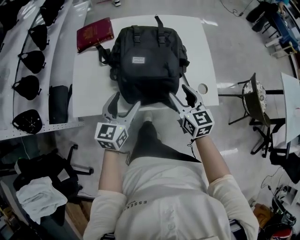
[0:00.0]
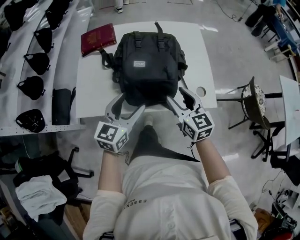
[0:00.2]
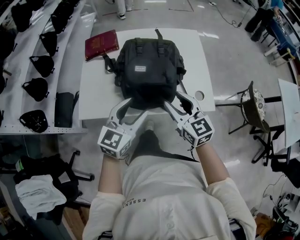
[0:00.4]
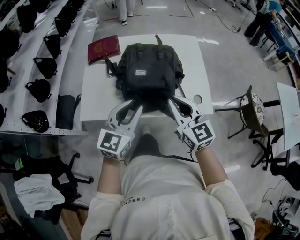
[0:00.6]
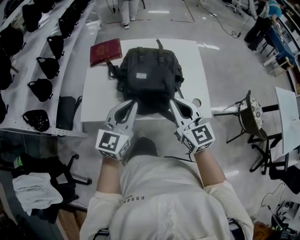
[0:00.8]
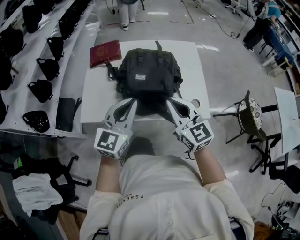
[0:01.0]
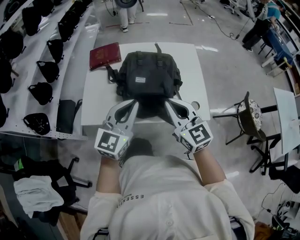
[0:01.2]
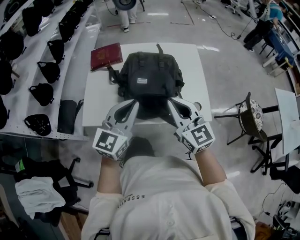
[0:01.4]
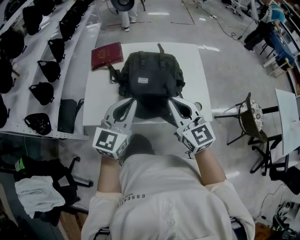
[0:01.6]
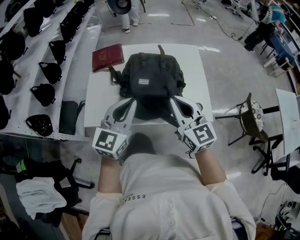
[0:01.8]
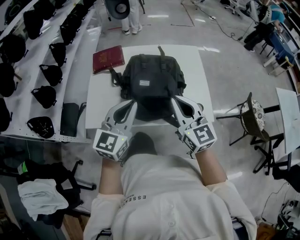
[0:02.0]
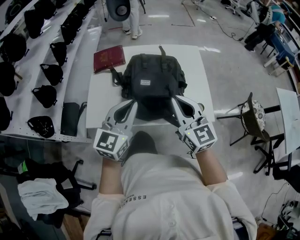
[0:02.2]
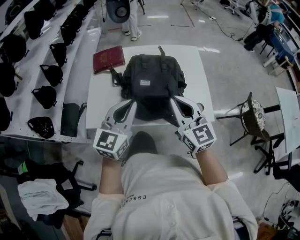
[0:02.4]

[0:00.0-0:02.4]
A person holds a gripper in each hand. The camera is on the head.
0:00.0 to 0:01.2: Both grippers travel together upward, some 15 cm. The left gripper changes its angle by about 20 degrees, and closes its fingers, while the right gripper swivels about 20 degrees, and closes up.
0:01.2 to 0:02.4: The grippers move only a little.

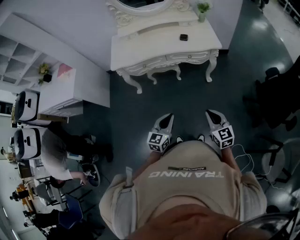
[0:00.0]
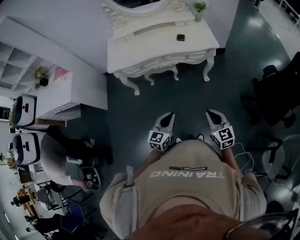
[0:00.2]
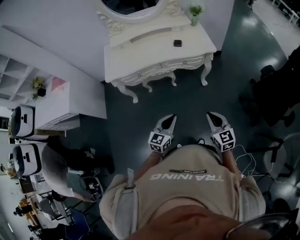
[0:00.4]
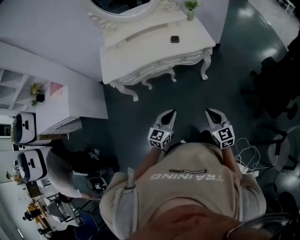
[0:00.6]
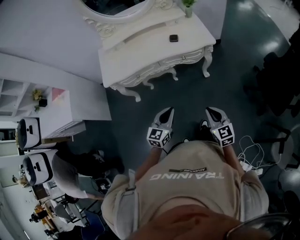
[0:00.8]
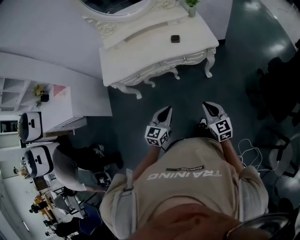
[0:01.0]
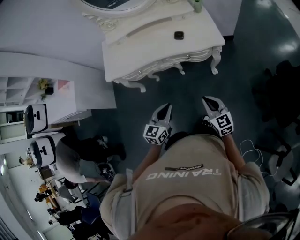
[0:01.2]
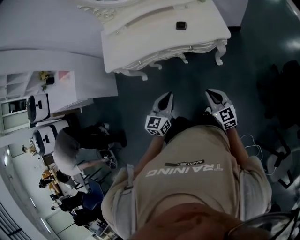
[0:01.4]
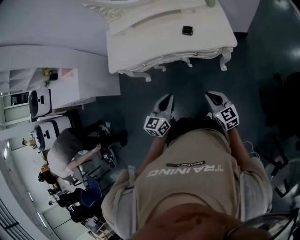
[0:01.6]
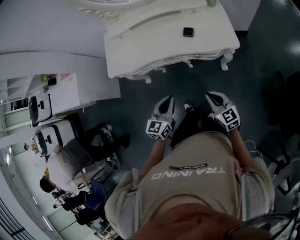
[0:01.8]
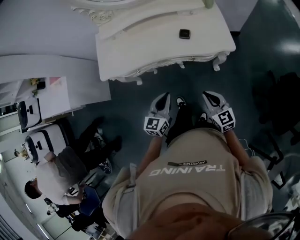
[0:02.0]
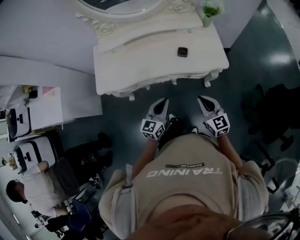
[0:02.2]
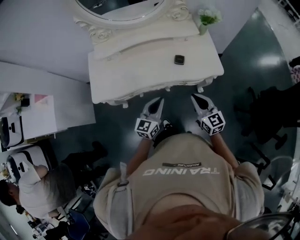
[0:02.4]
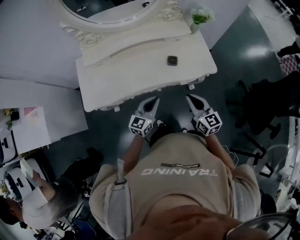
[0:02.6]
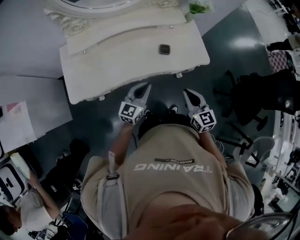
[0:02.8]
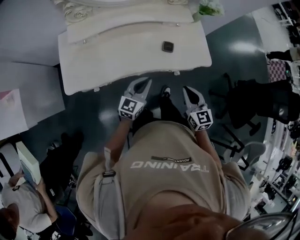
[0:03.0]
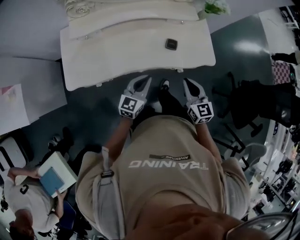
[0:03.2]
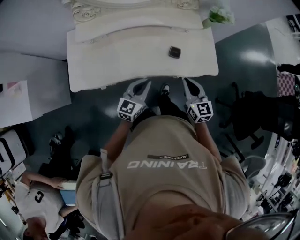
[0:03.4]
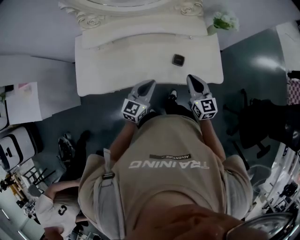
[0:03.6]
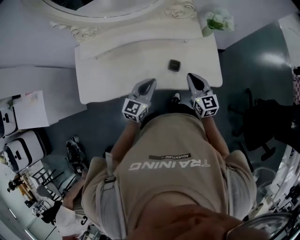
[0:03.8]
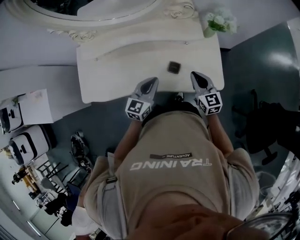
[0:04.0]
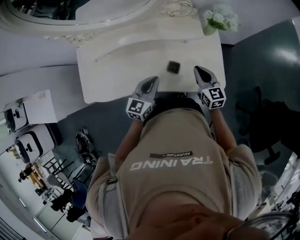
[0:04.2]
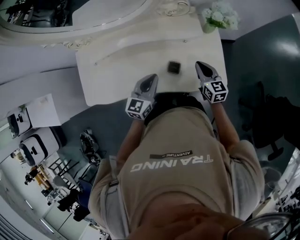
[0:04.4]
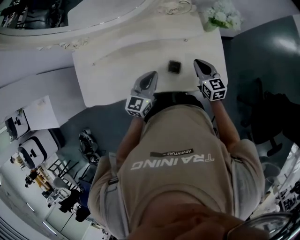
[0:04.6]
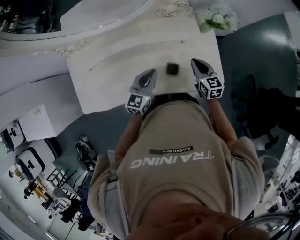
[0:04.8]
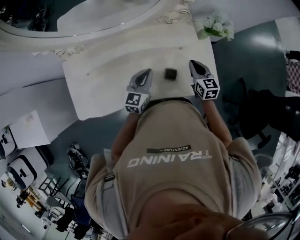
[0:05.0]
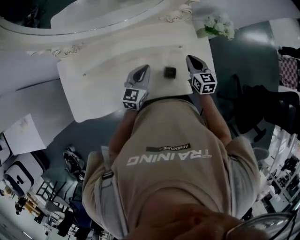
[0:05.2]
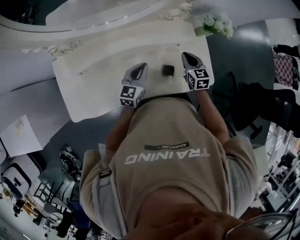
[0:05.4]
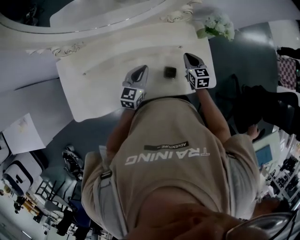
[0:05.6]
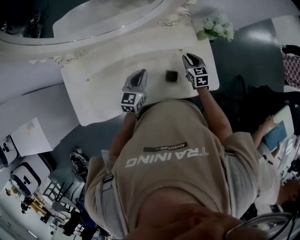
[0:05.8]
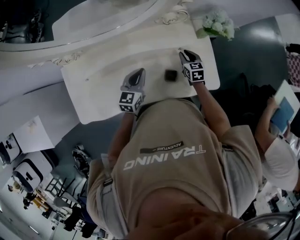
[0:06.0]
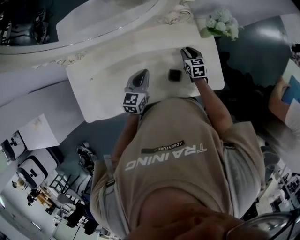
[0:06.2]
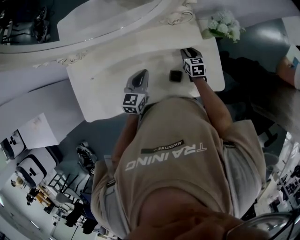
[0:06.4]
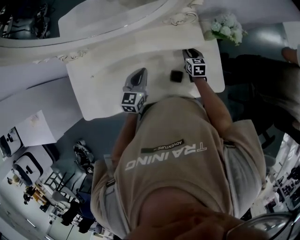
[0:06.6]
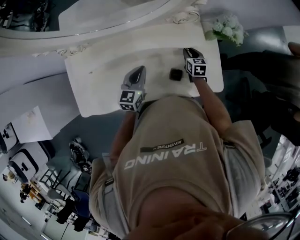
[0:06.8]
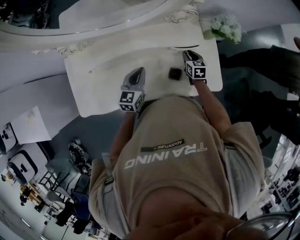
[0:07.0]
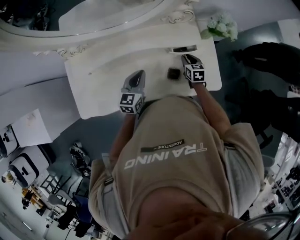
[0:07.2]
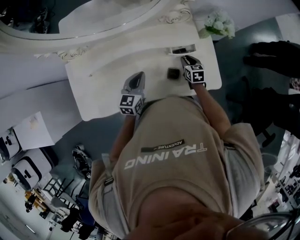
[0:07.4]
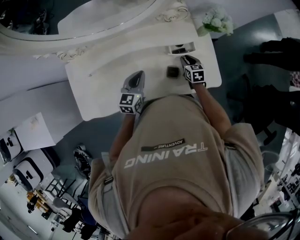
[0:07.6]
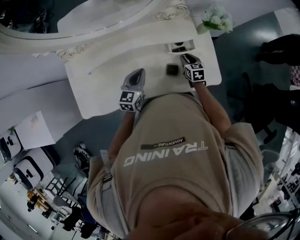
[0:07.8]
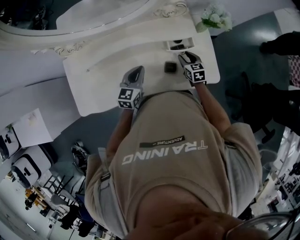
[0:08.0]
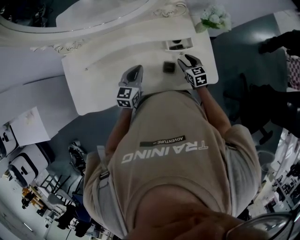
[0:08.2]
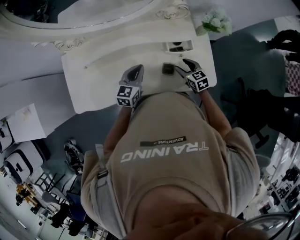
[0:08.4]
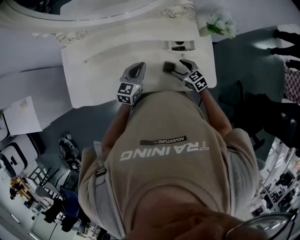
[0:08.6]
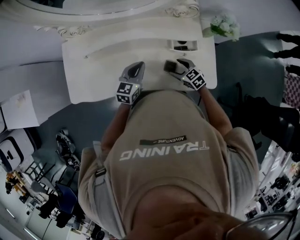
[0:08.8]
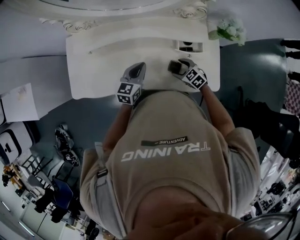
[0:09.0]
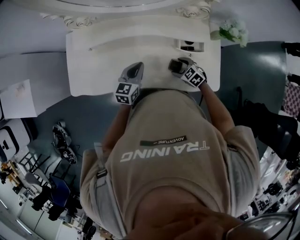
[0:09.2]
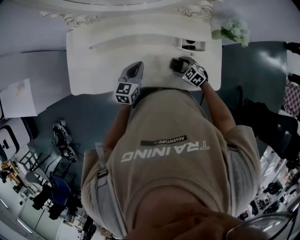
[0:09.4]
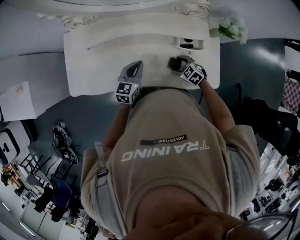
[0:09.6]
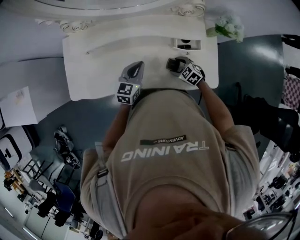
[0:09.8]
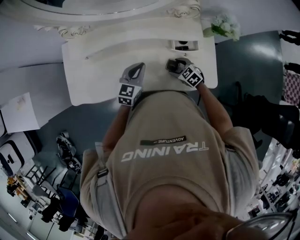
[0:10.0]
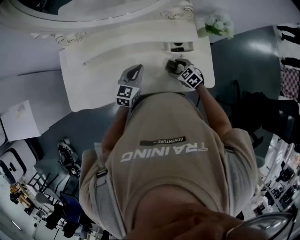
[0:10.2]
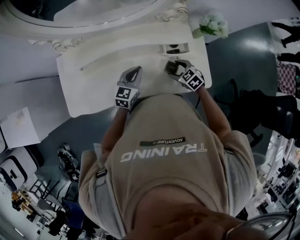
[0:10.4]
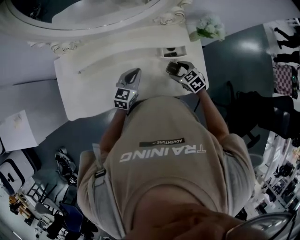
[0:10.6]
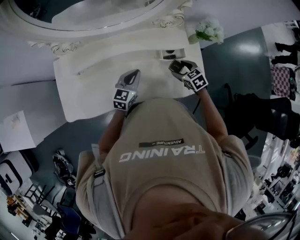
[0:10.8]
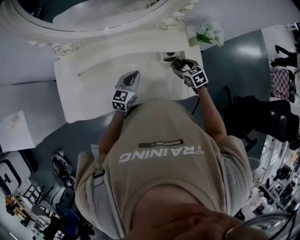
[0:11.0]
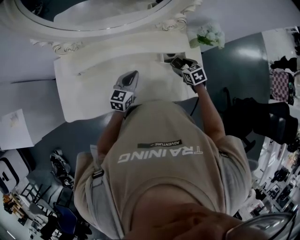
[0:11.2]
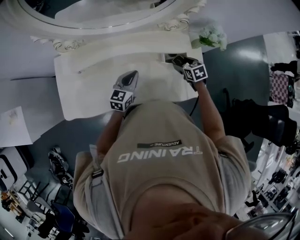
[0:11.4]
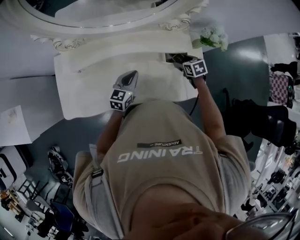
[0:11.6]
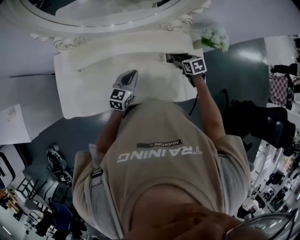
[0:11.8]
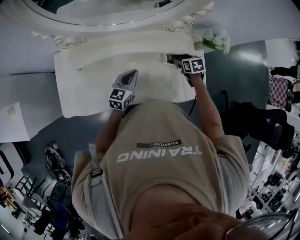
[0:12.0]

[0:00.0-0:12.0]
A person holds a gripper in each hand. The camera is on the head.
0:00.0 to 0:01.6: Both grippers travel together forward, roughly 30 cm.
0:01.6 to 0:03.0: The right gripper shifts approximately 25 cm forward and to the left, and changes its angle by about 30 degrees, while the left gripper goes roughly 25 cm forward, and turns by some 20 degrees.
0:03.0 to 0:04.4: The left gripper heads forward and to the right, covering approximately 20 cm. Meanwhile the right gripper travels forward and to the right by roughly 30 cm.
0:04.4 to 0:06.0: The left gripper shifts approximately 10 cm forward and to the left, while the right gripper travels forward, downward and to the left by some 15 cm, and swivels some 20 degrees.
0:06.0 to 0:07.6: The right gripper moves approximately 5 cm.
0:07.6 to 0:09.0: The right gripper shifts by roughly 10 cm, rotates approximately 50 degrees, and opens.
0:09.0 to 0:10.4: The right gripper changes place by about 5 cm.
0:10.4 to 0:12.0: The right gripper shifts about 15 cm forward and to the right, and changes its angle by approximately 30 degrees.

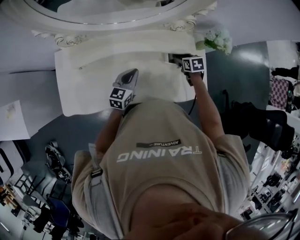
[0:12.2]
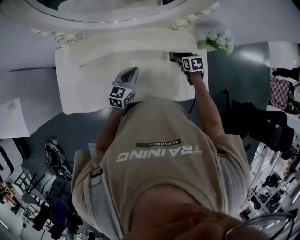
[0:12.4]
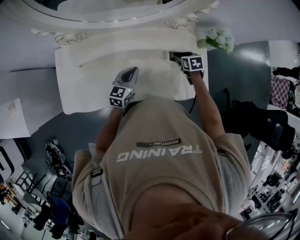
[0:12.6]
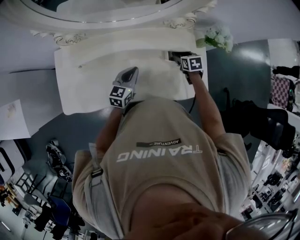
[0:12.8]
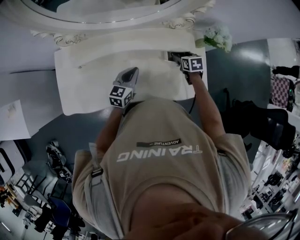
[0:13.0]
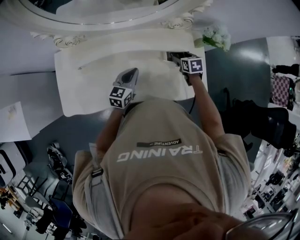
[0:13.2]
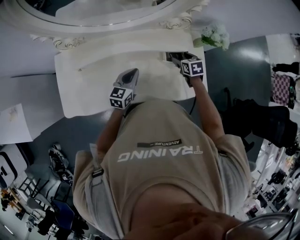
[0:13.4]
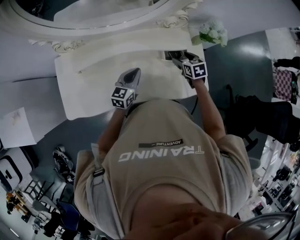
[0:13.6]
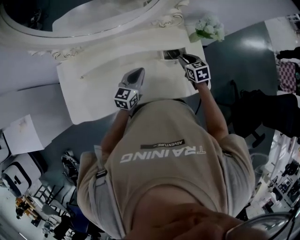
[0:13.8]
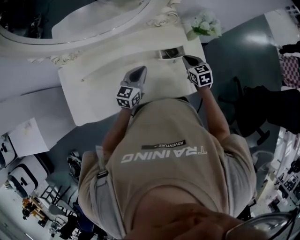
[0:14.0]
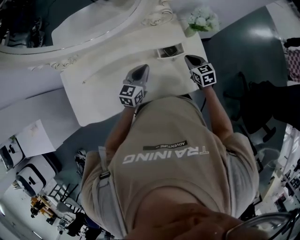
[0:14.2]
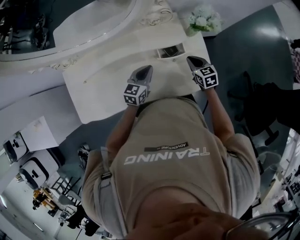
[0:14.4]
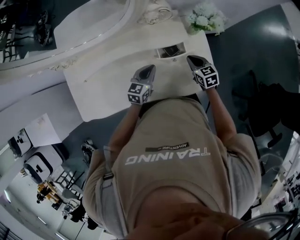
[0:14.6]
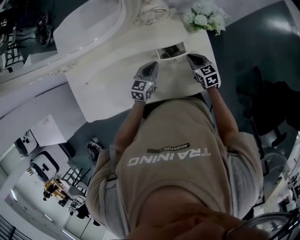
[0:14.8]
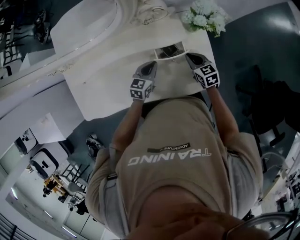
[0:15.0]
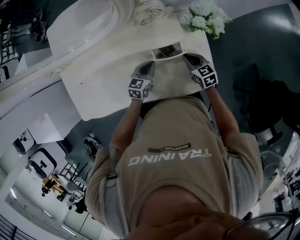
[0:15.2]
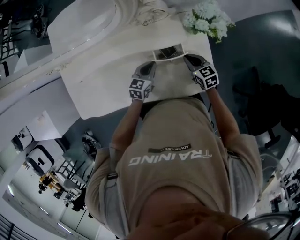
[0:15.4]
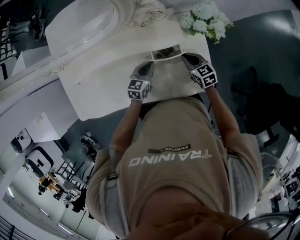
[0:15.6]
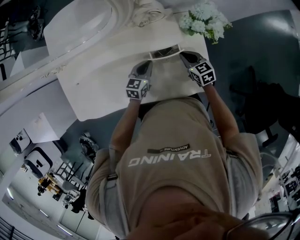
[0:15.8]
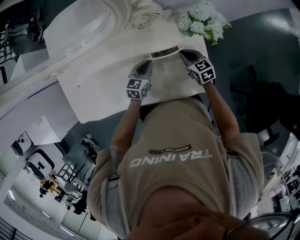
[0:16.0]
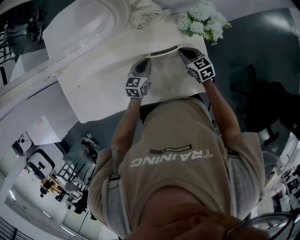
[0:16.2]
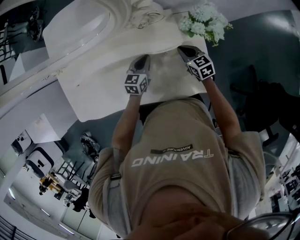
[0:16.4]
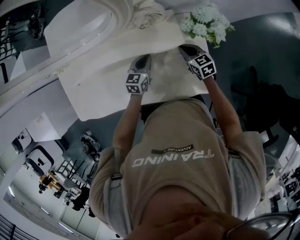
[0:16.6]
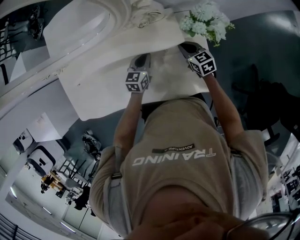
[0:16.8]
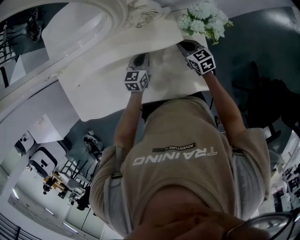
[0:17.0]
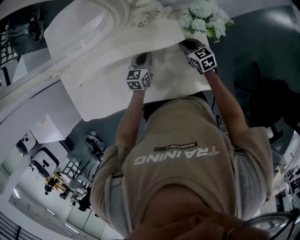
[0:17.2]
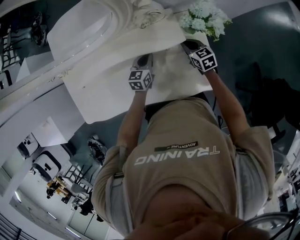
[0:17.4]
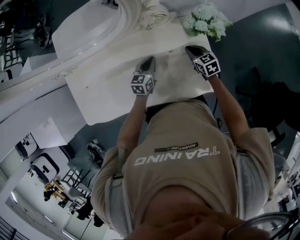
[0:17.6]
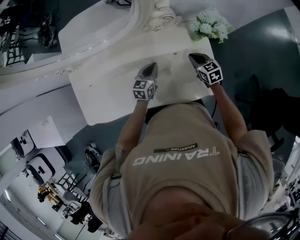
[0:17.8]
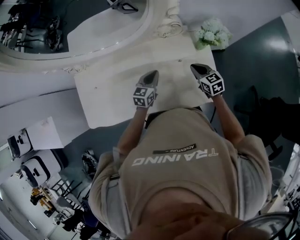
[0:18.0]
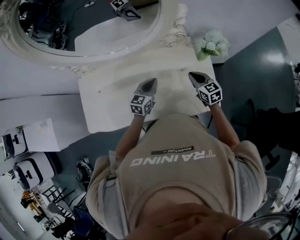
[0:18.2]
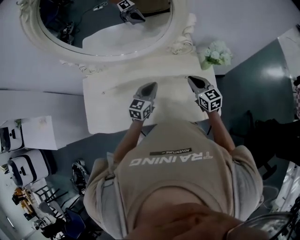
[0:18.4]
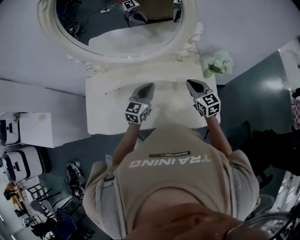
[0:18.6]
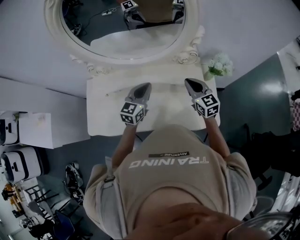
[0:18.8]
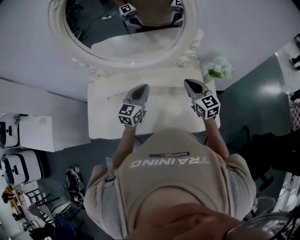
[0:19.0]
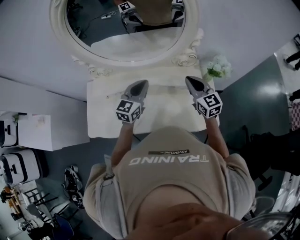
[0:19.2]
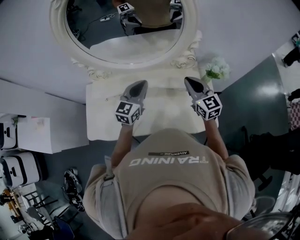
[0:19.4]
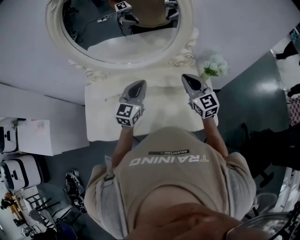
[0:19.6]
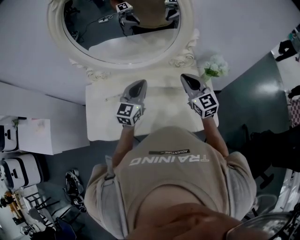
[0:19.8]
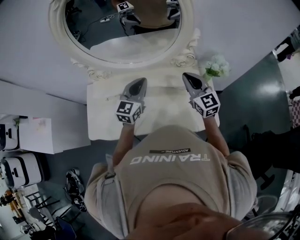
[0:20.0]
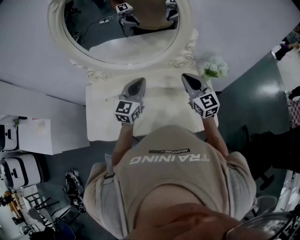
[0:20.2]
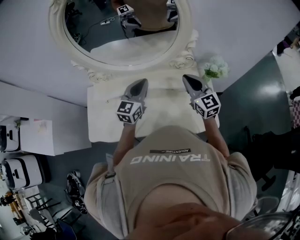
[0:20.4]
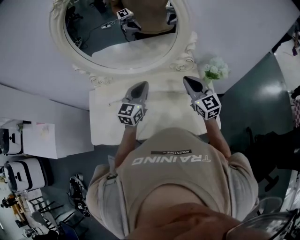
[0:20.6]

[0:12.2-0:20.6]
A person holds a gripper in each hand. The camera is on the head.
0:12.2 to 0:13.6: The right gripper changes place by approximately 5 cm.
0:13.6 to 0:15.0: The right gripper shifts roughly 10 cm to the right and downward, and closes. The left gripper heads to the right, downward and forward, covering roughly 20 cm.
0:15.0 to 0:16.4: The grippers both shift forward by approximately 5 cm.
0:16.4 to 0:17.8: The left gripper ends up roughly 5 cm from where it was.
0:17.8 to 0:19.2: The two grippers go approximately 30 cm upward and to the left. The left gripper changes its angle by some 20 degrees. Meanwhile the right gripper swivels some 30 degrees.
0:19.2 to 0:20.6: The grippers make only small movements.

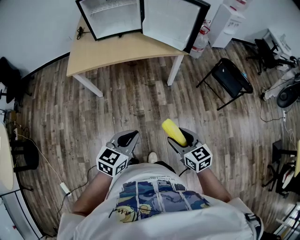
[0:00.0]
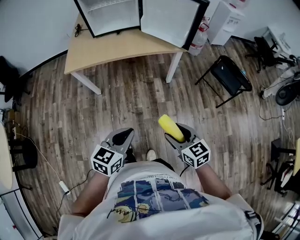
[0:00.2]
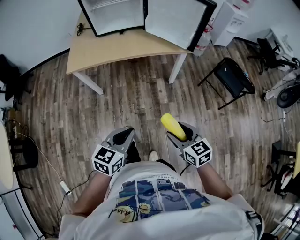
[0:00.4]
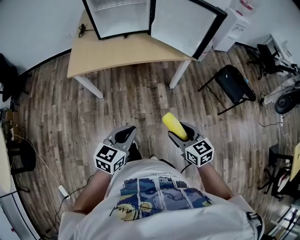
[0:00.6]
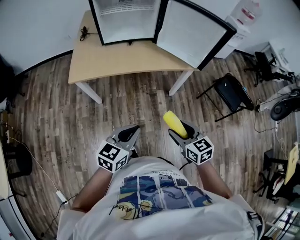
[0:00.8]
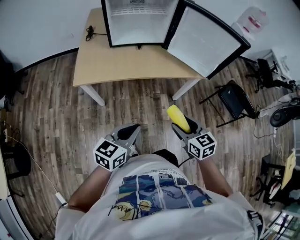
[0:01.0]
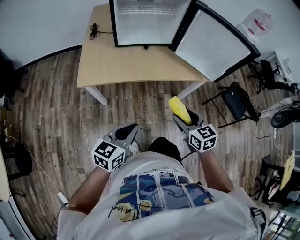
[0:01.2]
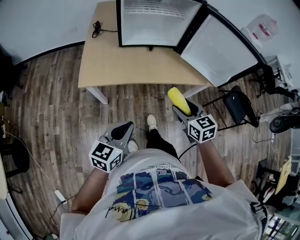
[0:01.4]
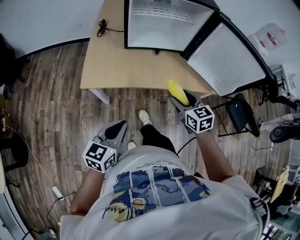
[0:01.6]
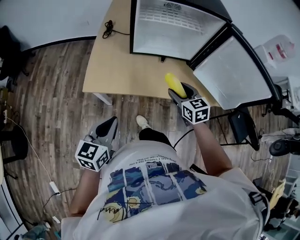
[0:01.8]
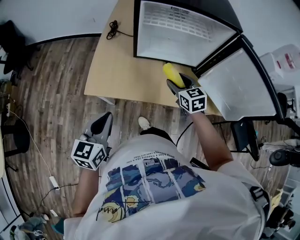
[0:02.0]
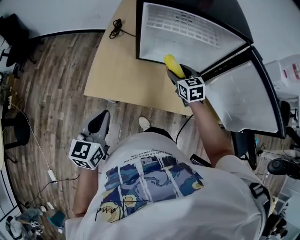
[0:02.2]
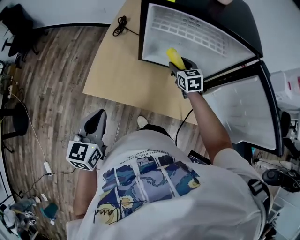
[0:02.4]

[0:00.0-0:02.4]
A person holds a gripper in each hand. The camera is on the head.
0:00.0 to 0:01.2: The two grippers go about 30 cm forward and to the left.
0:01.2 to 0:02.4: The left gripper shifts by approximately 30 cm, and changes its angle by approximately 40 degrees, while the right gripper shifts by about 50 cm.
